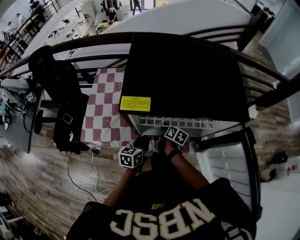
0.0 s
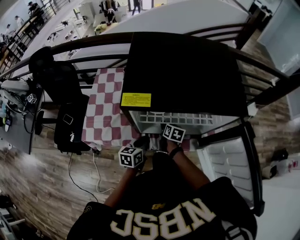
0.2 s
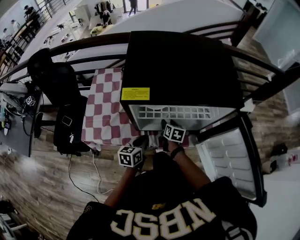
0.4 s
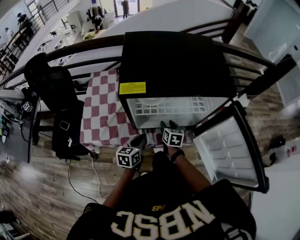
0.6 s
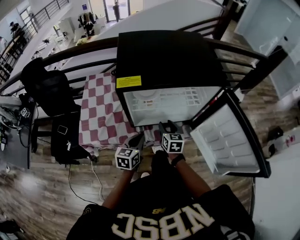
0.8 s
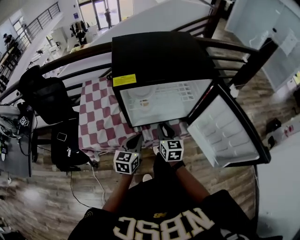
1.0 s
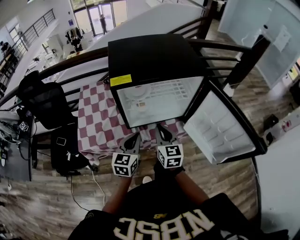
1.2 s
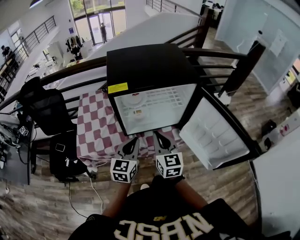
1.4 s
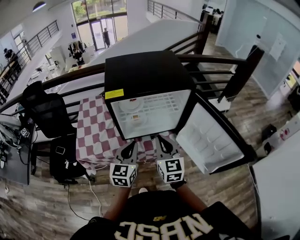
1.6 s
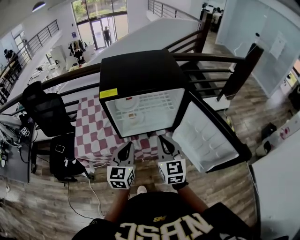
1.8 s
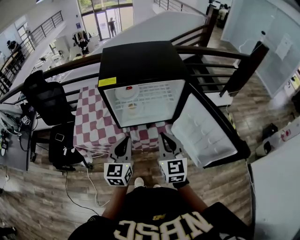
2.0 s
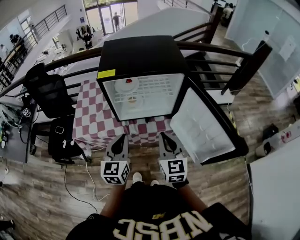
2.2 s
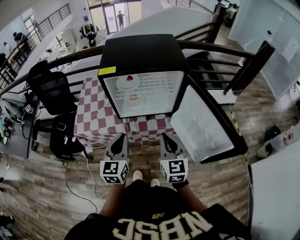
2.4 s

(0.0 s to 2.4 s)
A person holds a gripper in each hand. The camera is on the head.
0.0 s - 1.2 s: The right gripper travels upward by about 25 cm, rolls counterclockwise, seen from behind, by roughly 40 degrees, and opens and closes again.
1.2 s - 2.4 s: The right gripper moves approximately 20 cm.

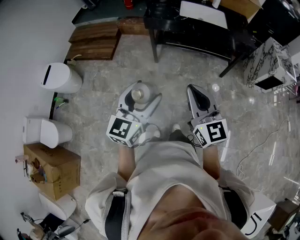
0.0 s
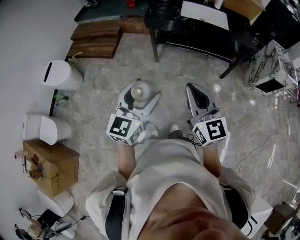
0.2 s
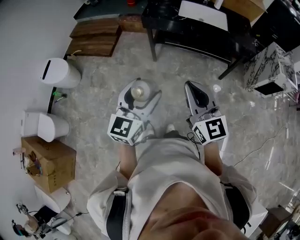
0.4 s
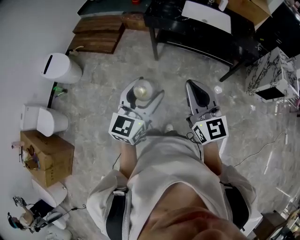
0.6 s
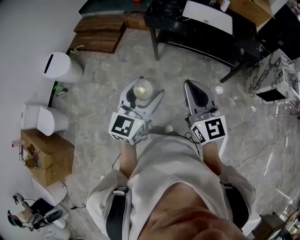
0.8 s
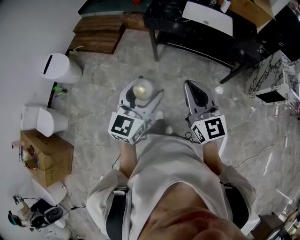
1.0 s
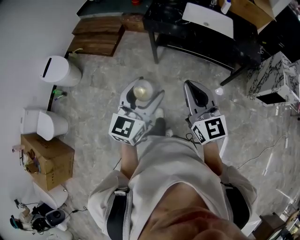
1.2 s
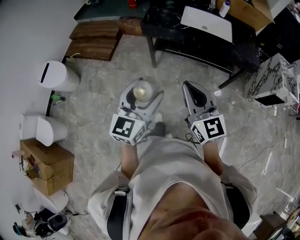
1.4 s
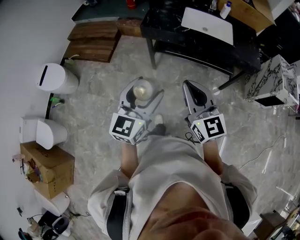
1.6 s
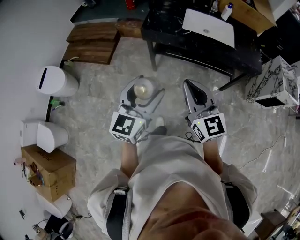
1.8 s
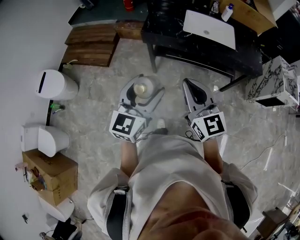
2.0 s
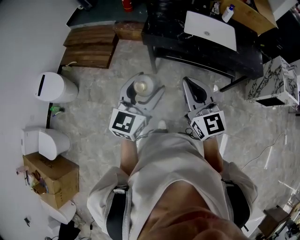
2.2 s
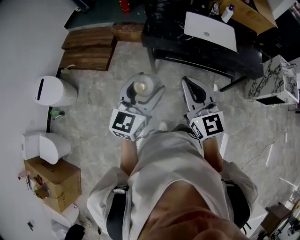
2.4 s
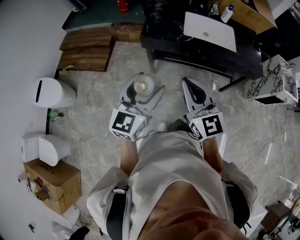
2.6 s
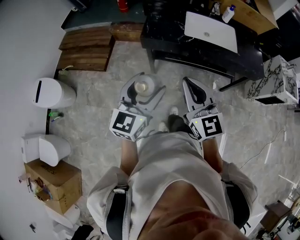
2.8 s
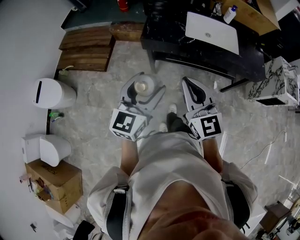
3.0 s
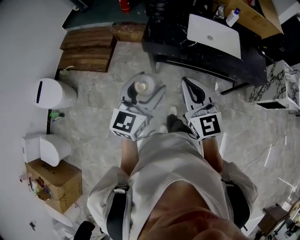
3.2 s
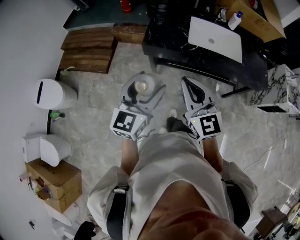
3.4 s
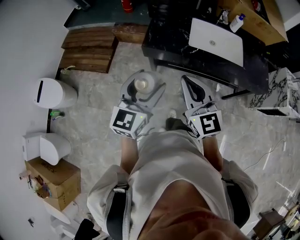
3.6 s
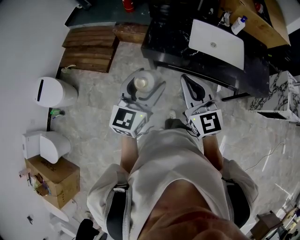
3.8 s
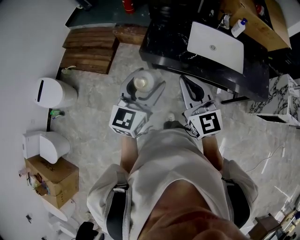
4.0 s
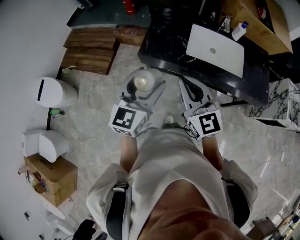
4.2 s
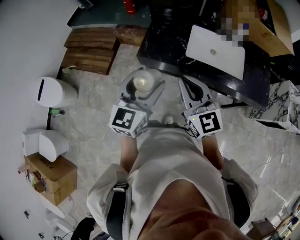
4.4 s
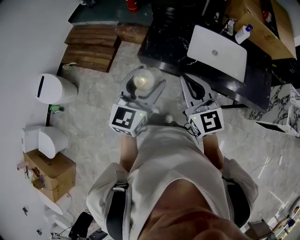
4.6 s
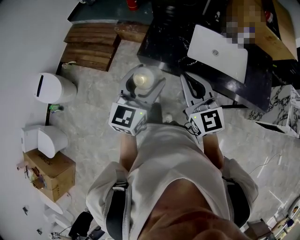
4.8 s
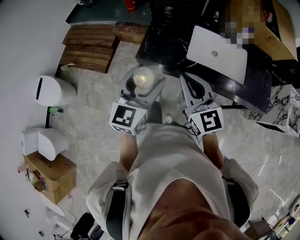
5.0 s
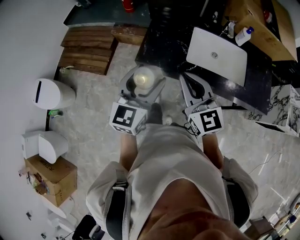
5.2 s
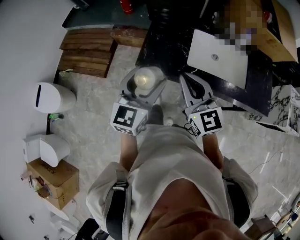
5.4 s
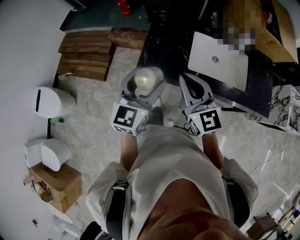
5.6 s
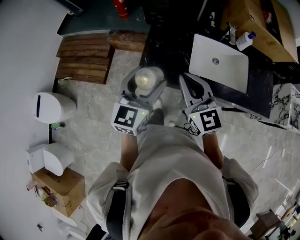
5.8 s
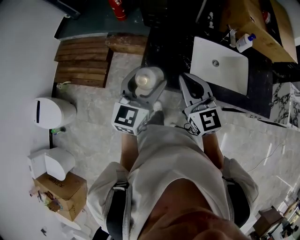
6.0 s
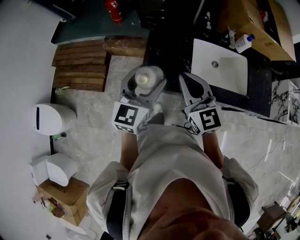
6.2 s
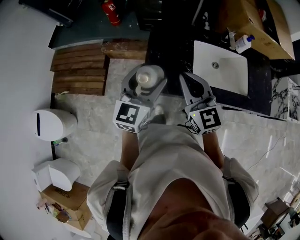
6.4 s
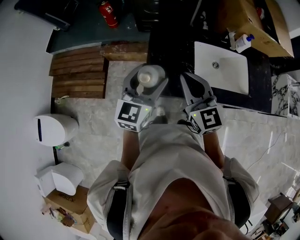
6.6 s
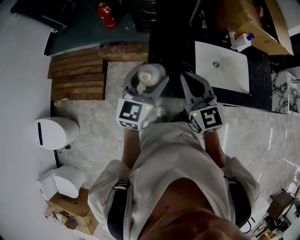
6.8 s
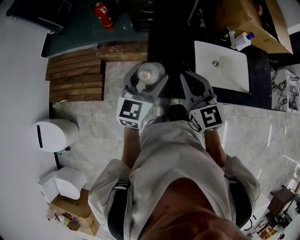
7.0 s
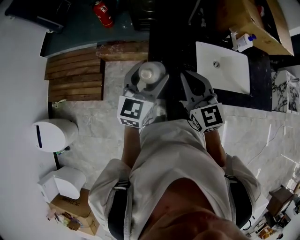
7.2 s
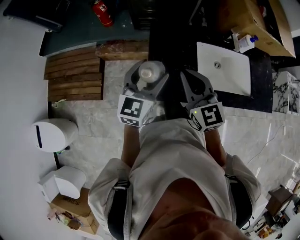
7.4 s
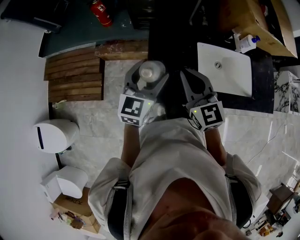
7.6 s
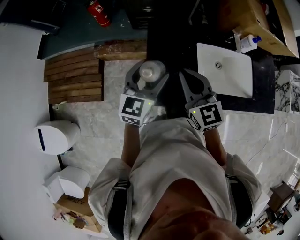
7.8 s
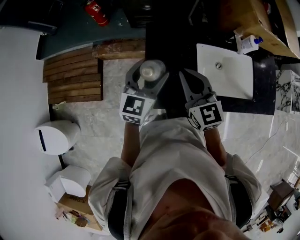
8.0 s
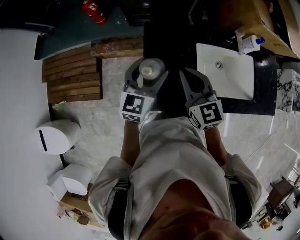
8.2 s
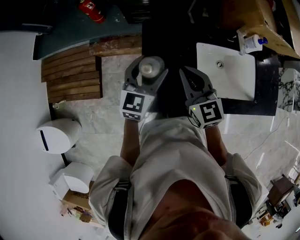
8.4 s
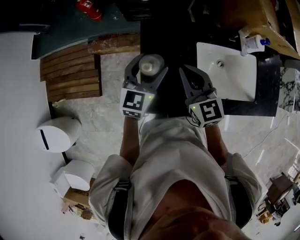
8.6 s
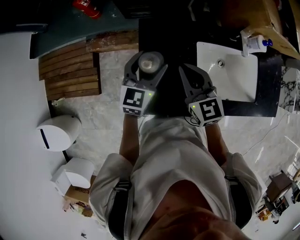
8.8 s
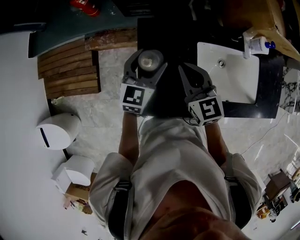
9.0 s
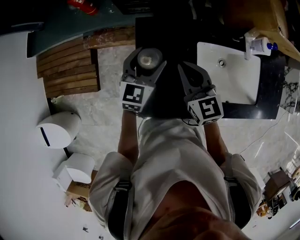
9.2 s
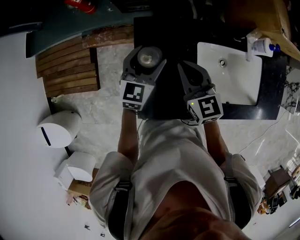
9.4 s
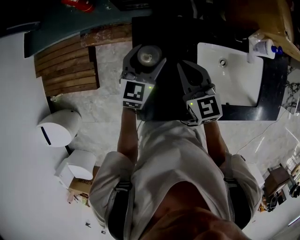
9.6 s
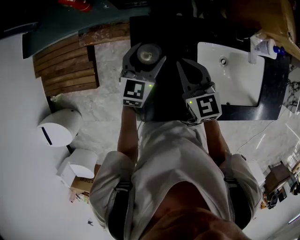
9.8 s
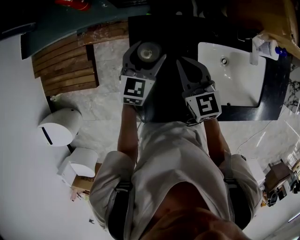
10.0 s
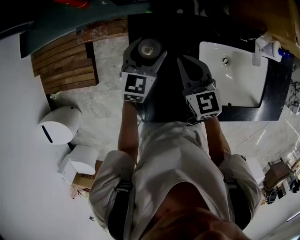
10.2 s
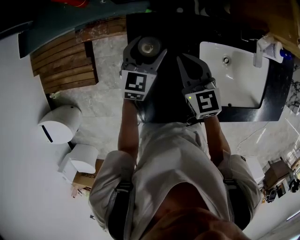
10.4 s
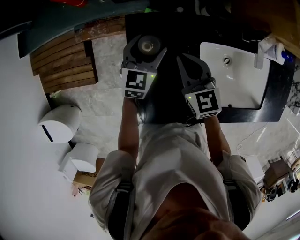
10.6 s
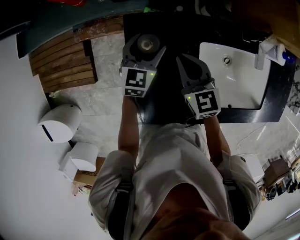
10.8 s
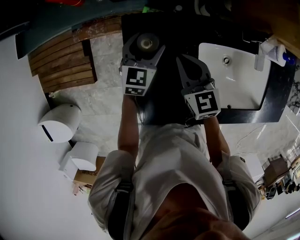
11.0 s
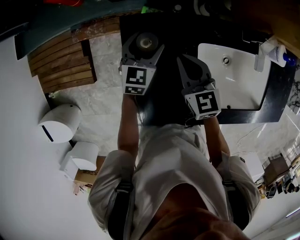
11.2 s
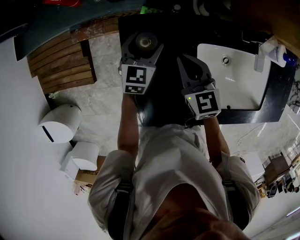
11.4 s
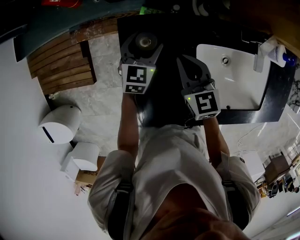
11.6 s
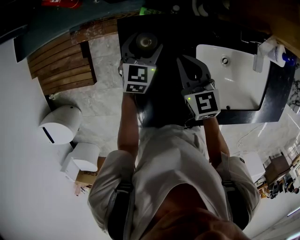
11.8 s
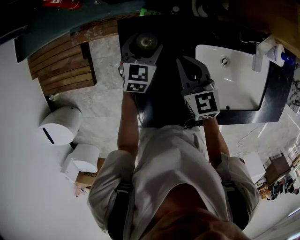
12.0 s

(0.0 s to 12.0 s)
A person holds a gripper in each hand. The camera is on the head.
0.0 s - 1.6 s: Both grippers travel together forward, approximately 20 cm.
1.6 s - 3.0 s: The left gripper goes some 15 cm forward; the right gripper is displaced forward and to the left by about 15 cm.
3.0 s - 4.4 s: The grippers both shift forward by about 15 cm.
4.4 s - 6.0 s: The two grippers go roughly 20 cm forward.
6.0 s - 7.6 s: The right gripper moves forward and to the left, some 15 cm. Meanwhile the left gripper moves forward, about 15 cm.
7.6 s - 9.0 s: Both grippers travel together forward and downward, roughly 15 cm.
9.0 s - 10.4 s: The two grippers go about 10 cm downward and forward.
10.4 s - 12.0 s: The left gripper travels downward by about 5 cm.

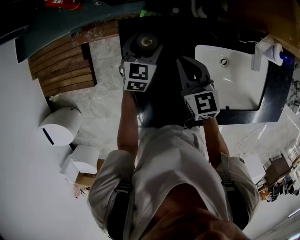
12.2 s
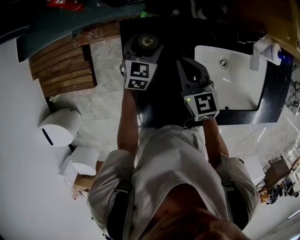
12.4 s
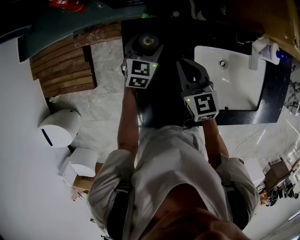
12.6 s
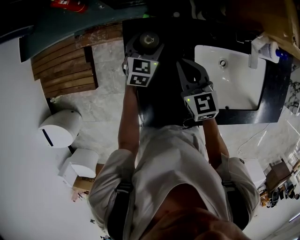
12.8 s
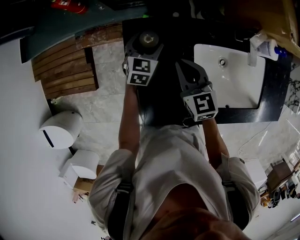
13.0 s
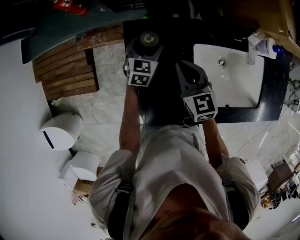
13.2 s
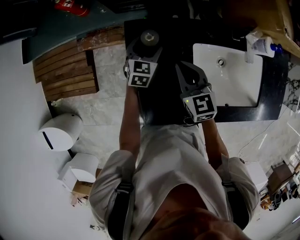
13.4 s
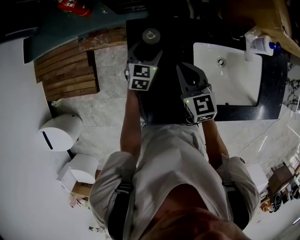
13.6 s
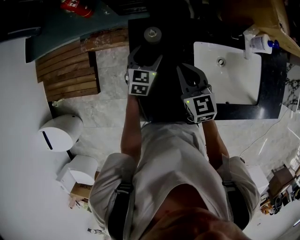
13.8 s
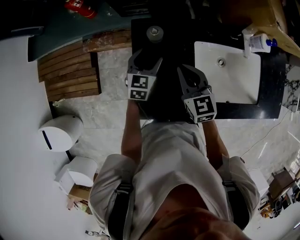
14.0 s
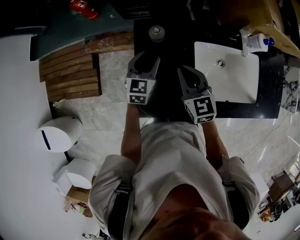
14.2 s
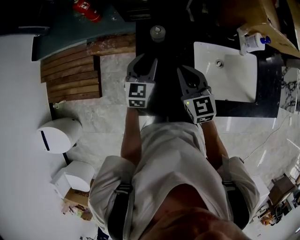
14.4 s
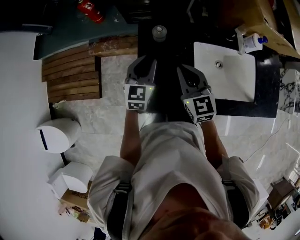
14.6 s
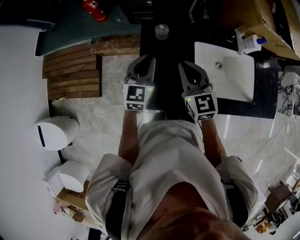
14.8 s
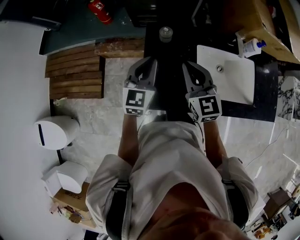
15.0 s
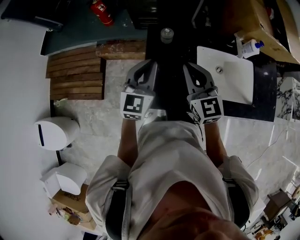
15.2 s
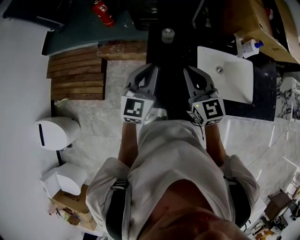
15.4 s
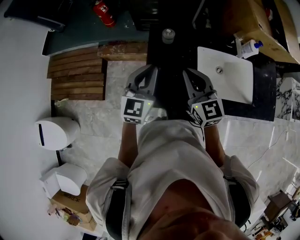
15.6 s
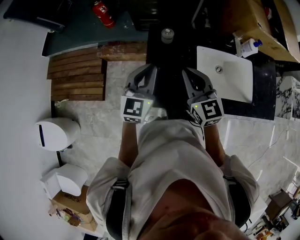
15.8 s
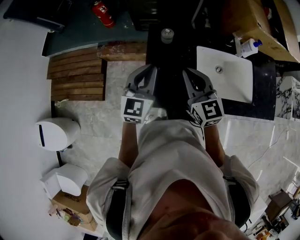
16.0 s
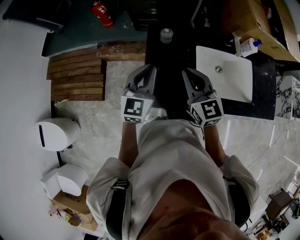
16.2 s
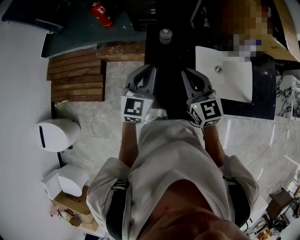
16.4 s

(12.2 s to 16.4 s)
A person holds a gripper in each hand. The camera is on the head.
12.2 s - 13.6 s: The right gripper is displaced backward by approximately 5 cm.
13.6 s - 15.0 s: The right gripper goes about 15 cm upward and backward. Meanwhile the left gripper is displaced upward and backward by some 25 cm, turns by some 20 degrees, and closes up.
15.0 s - 16.4 s: The grippers make only small movements.

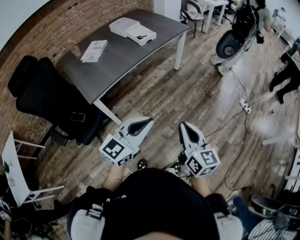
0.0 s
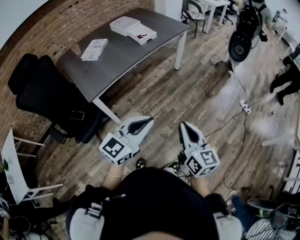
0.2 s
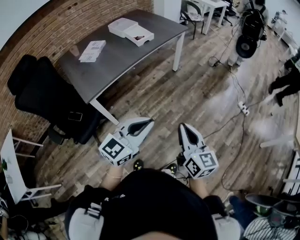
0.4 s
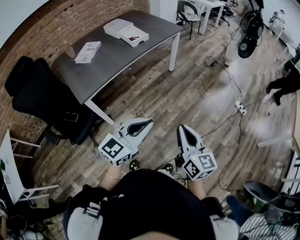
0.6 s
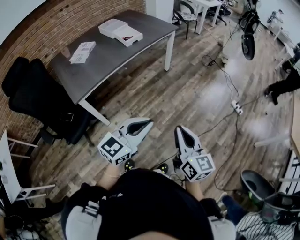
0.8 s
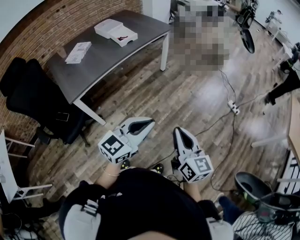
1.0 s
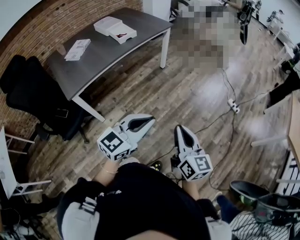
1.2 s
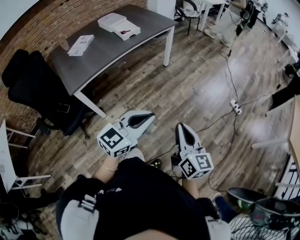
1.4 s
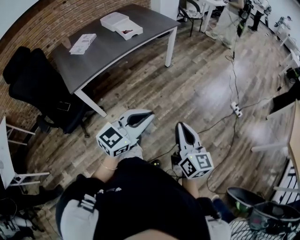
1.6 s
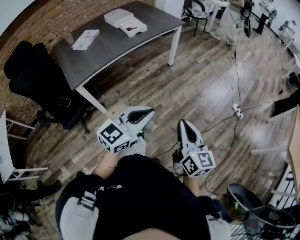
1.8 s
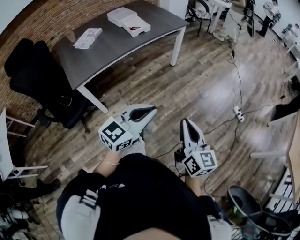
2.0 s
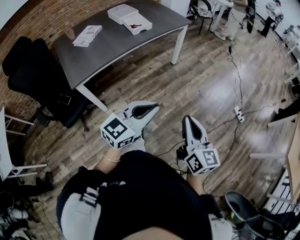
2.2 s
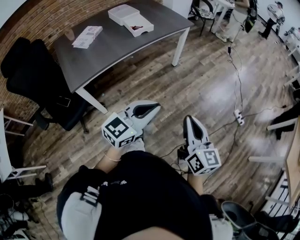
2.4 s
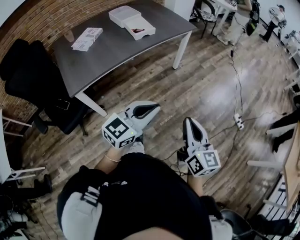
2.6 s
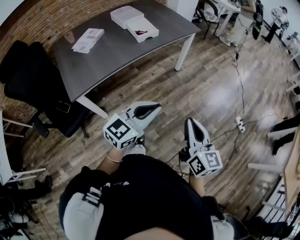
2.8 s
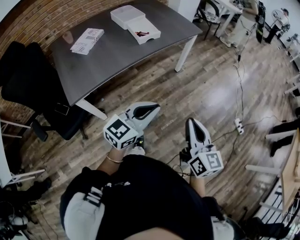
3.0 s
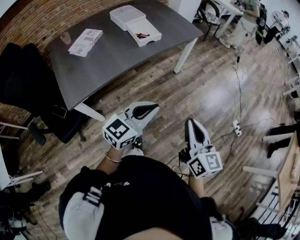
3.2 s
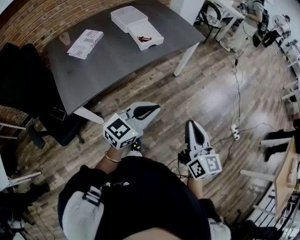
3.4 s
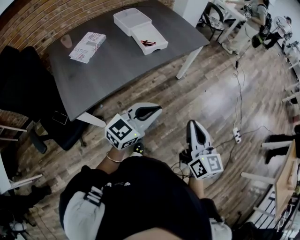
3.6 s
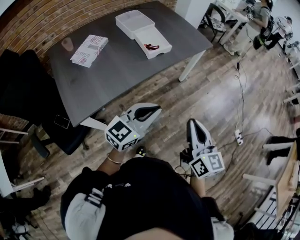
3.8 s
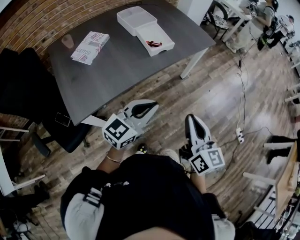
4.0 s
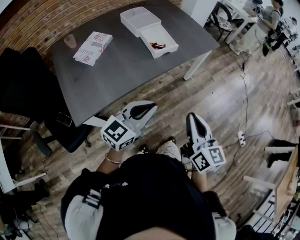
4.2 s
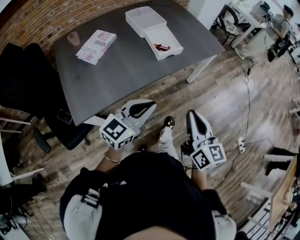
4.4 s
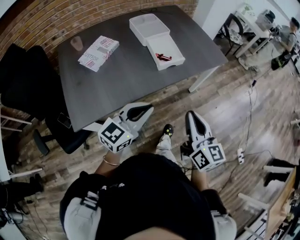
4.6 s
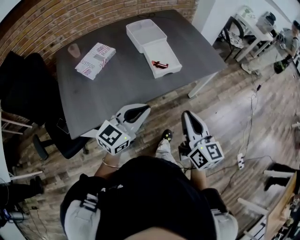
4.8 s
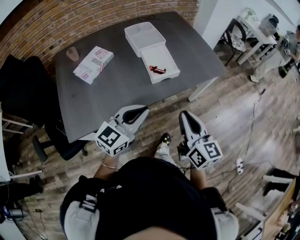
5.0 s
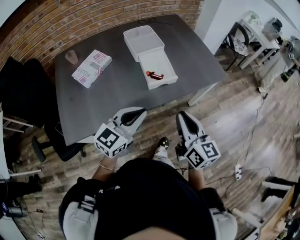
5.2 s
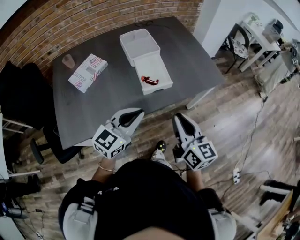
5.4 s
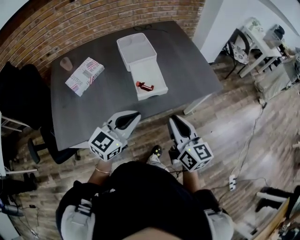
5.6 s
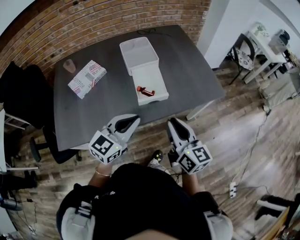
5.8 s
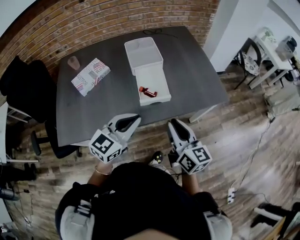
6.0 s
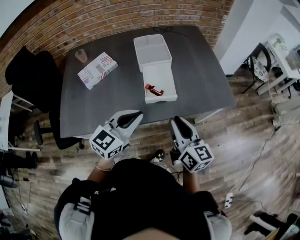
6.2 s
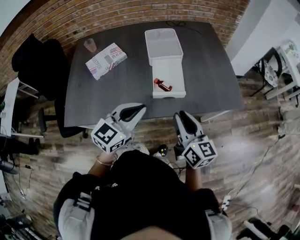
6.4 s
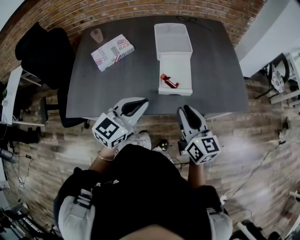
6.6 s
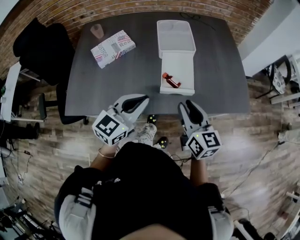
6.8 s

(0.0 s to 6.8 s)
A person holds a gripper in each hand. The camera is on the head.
0.0 s - 1.4 s: The grippers both shift to the right by roughly 15 cm.
1.4 s - 2.8 s: Both grippers move forward and to the left, roughly 20 cm.
2.8 s - 4.0 s: The right gripper travels forward and to the left by roughly 25 cm. Meanwhile the left gripper travels to the left and forward by approximately 25 cm.
4.0 s - 5.4 s: Both grippers move forward, roughly 25 cm.
5.4 s - 6.8 s: The left gripper goes approximately 10 cm forward, and changes its angle by approximately 20 degrees. The right gripper goes roughly 15 cm forward, and turns by approximately 20 degrees.
